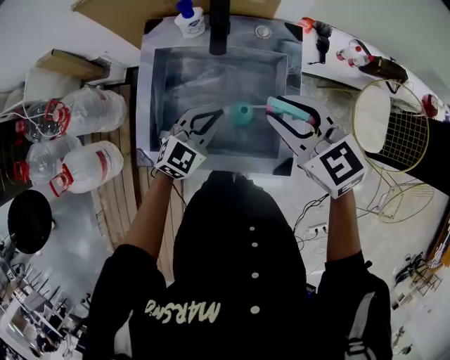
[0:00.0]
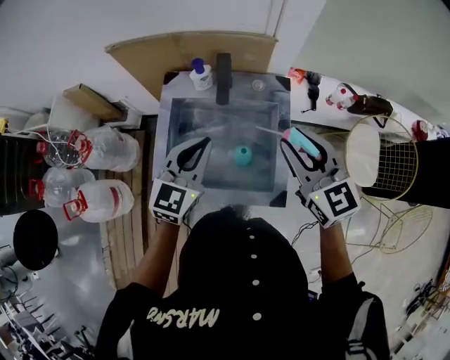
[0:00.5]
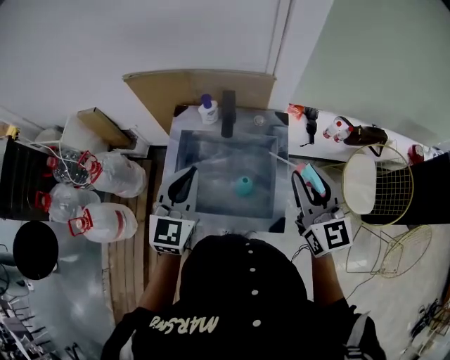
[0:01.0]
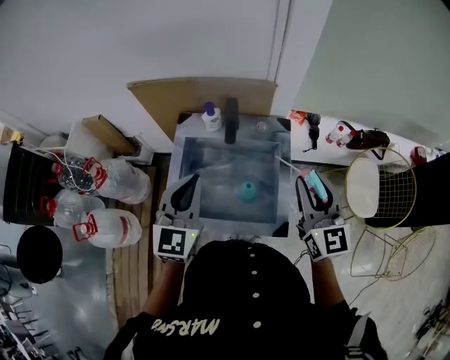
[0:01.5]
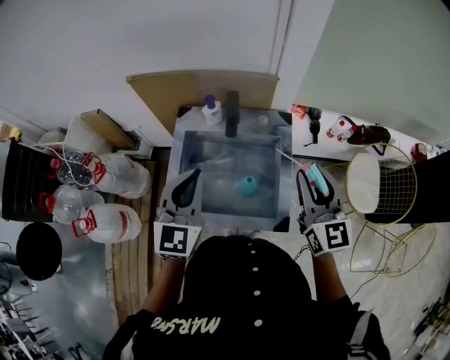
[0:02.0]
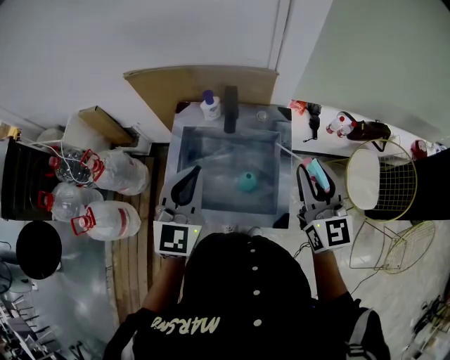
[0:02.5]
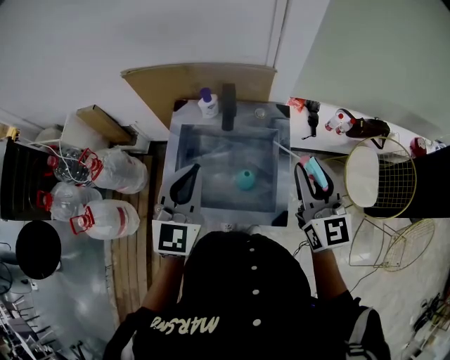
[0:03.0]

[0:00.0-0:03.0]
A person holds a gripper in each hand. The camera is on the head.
0:00.0 to 0:01.5: The left gripper goes roughly 25 cm upward, and swivels about 30 degrees. Meanwhile the right gripper moves upward, to the right and backward, approximately 15 cm, and rotates some 40 degrees.
0:01.5 to 0:03.0: The grippers move only a little.

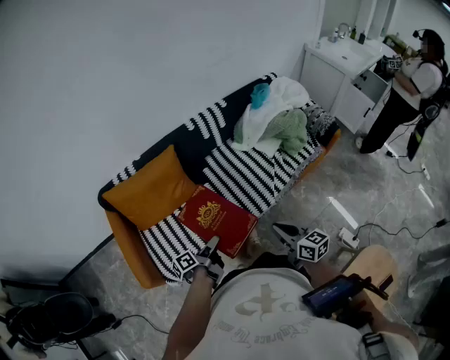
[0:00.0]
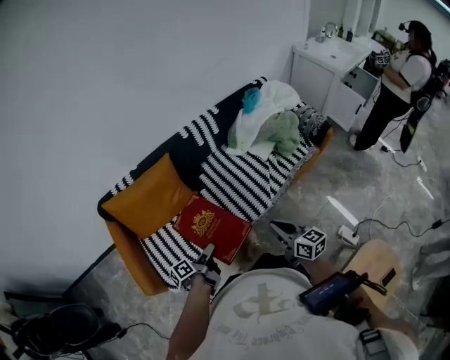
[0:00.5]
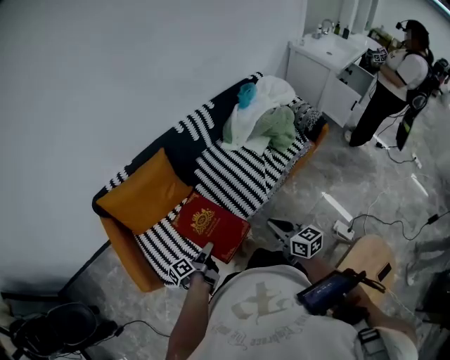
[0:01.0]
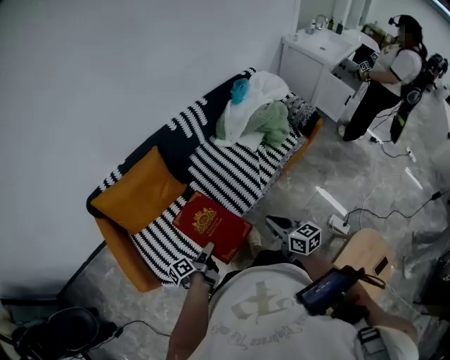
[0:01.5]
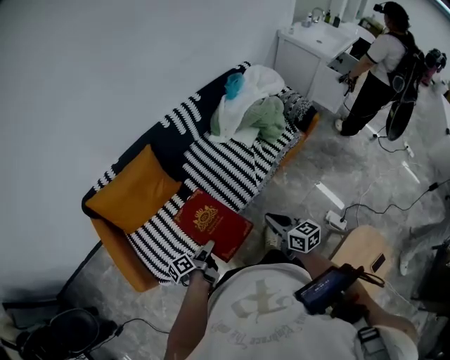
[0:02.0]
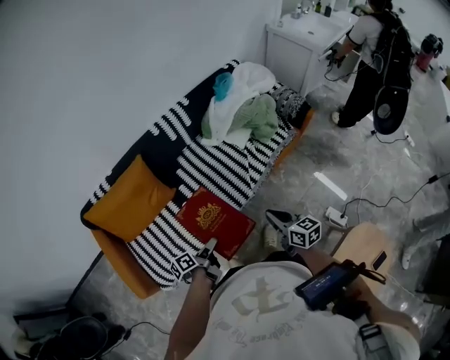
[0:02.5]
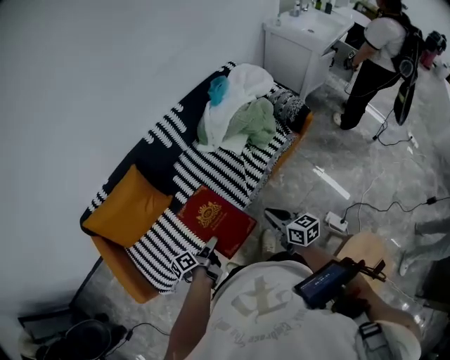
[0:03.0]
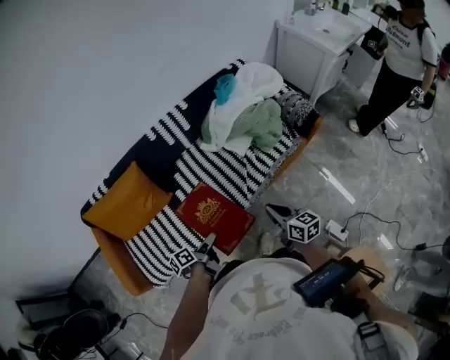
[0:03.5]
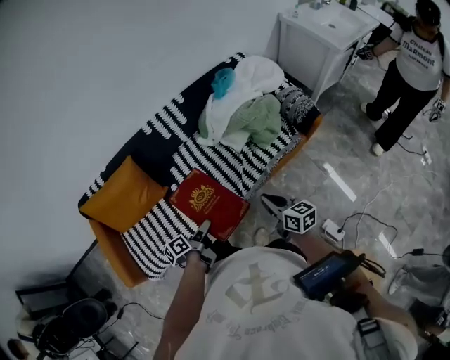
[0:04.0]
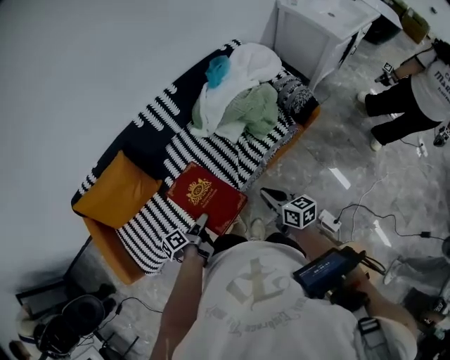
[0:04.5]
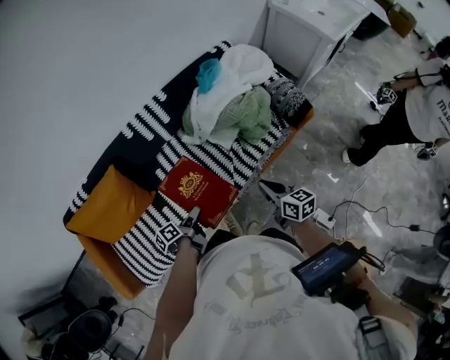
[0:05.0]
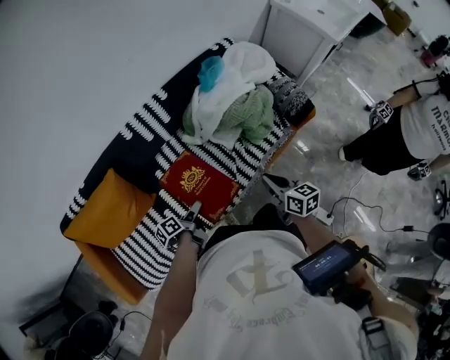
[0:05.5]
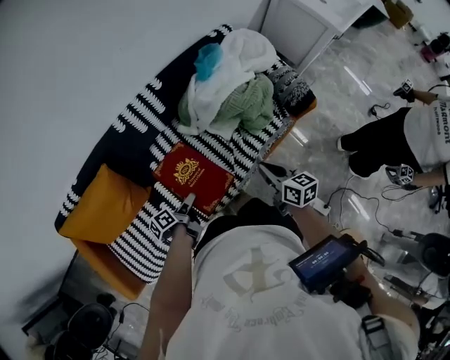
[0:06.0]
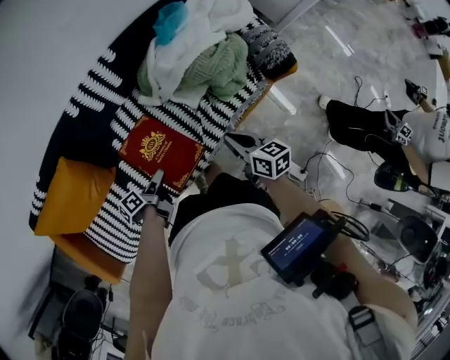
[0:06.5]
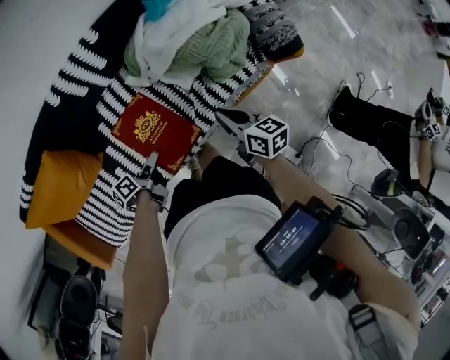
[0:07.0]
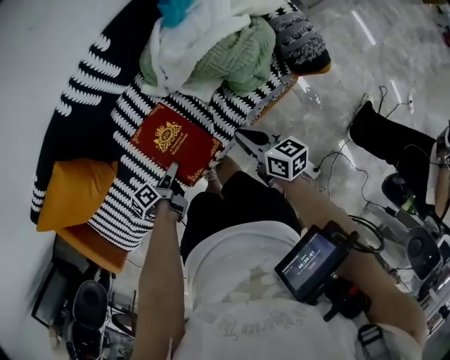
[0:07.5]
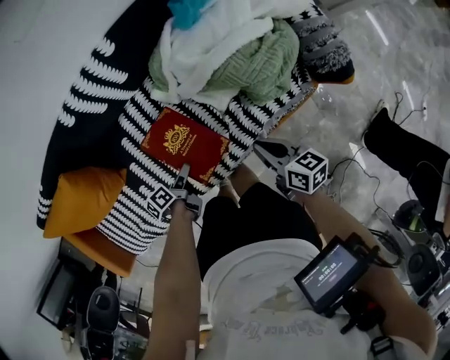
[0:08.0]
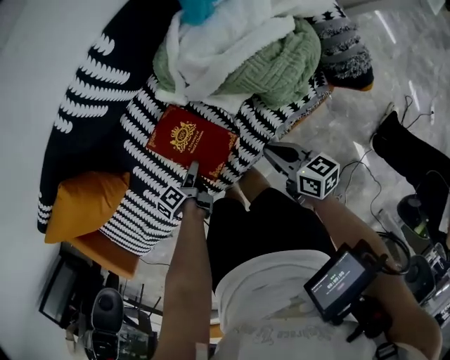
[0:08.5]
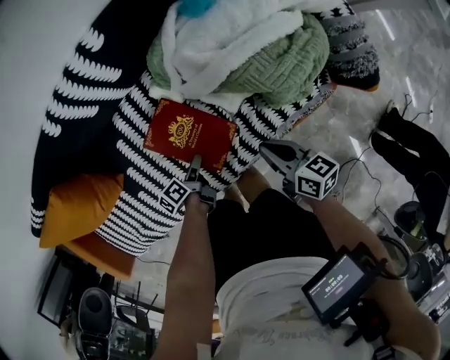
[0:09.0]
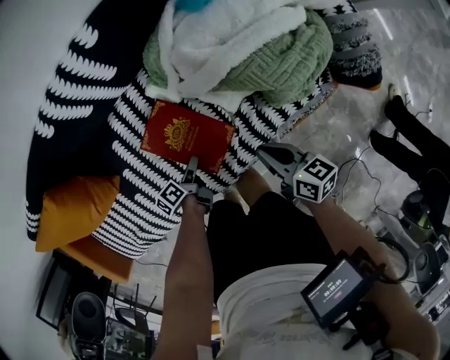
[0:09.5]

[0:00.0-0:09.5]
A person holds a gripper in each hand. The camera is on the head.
0:02.0 to 0:04.0: The right gripper shifts by roughly 25 cm.
0:04.0 to 0:05.5: The right gripper changes place by approximately 10 cm.
0:05.5 to 0:07.5: The right gripper heads downward, covering approximately 10 cm.
0:07.5 to 0:09.5: The right gripper heads downward, covering approximately 10 cm.

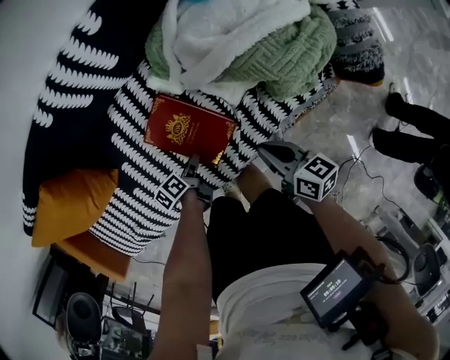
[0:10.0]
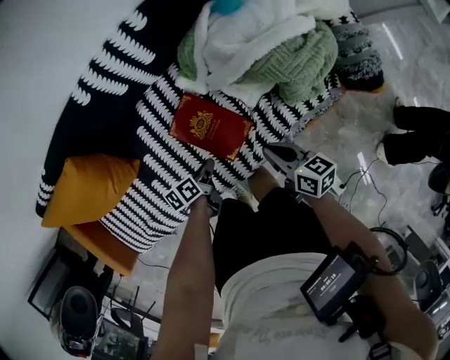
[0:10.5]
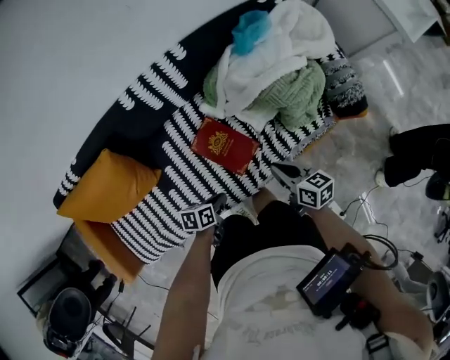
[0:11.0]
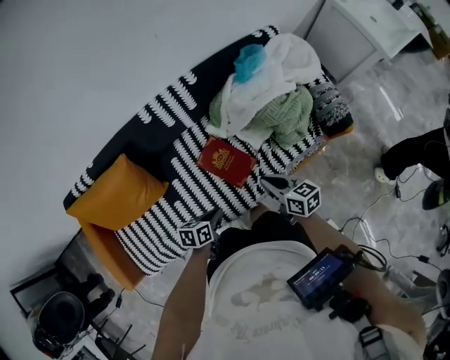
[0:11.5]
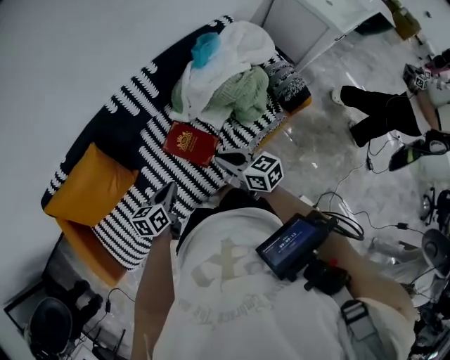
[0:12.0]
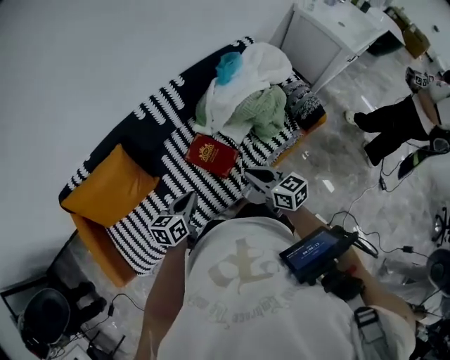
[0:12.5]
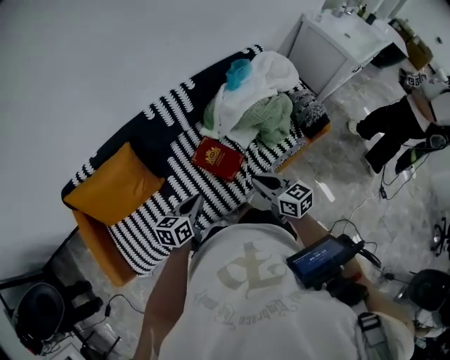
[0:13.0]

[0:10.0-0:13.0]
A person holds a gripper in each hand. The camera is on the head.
0:10.0 to 0:11.5: The right gripper heads upward, covering roughly 20 cm.
0:11.5 to 0:13.0: The right gripper travels upward by roughly 10 cm.

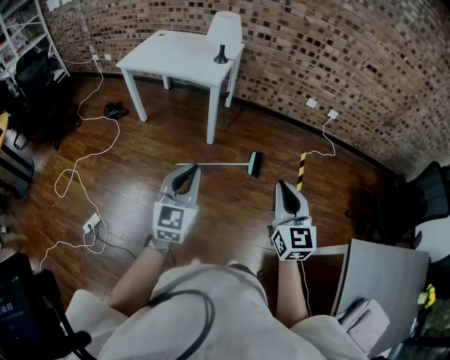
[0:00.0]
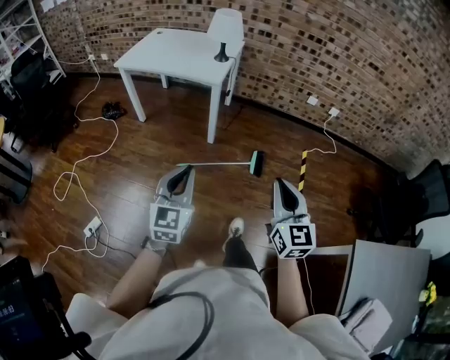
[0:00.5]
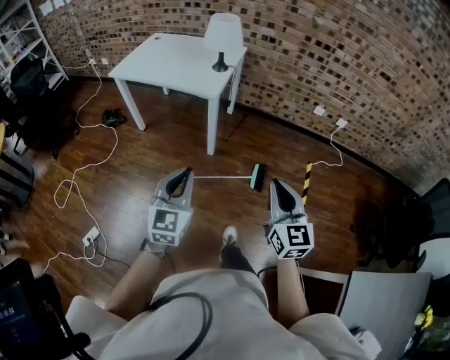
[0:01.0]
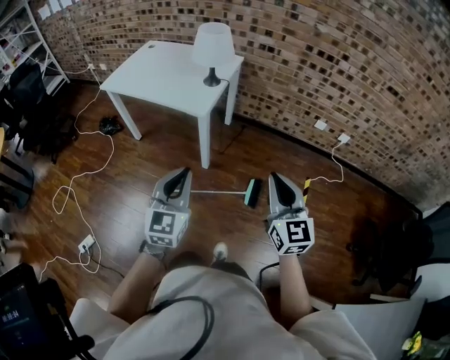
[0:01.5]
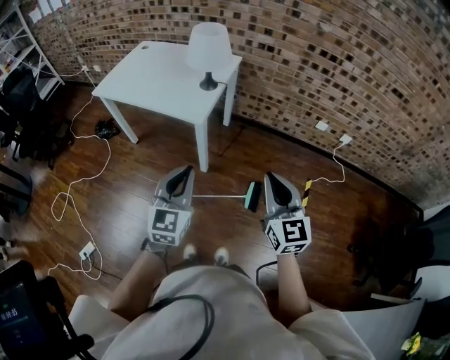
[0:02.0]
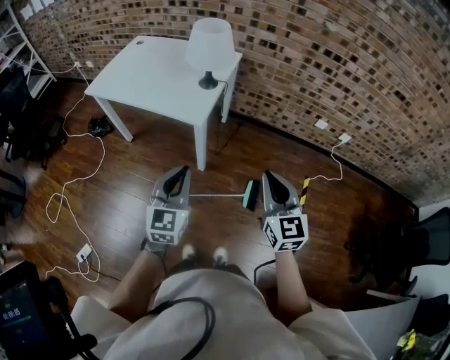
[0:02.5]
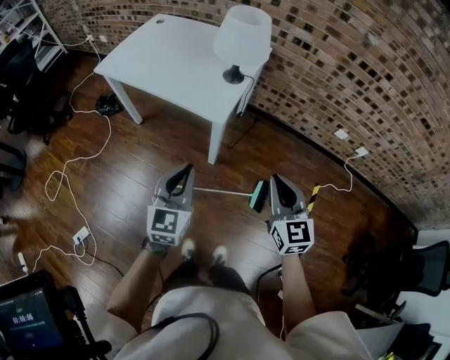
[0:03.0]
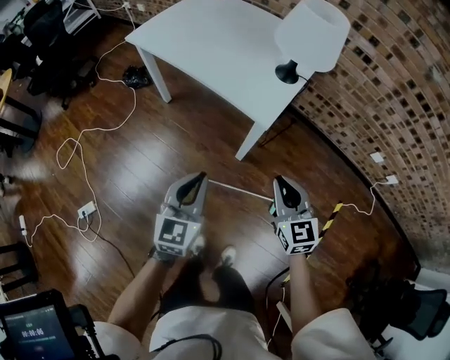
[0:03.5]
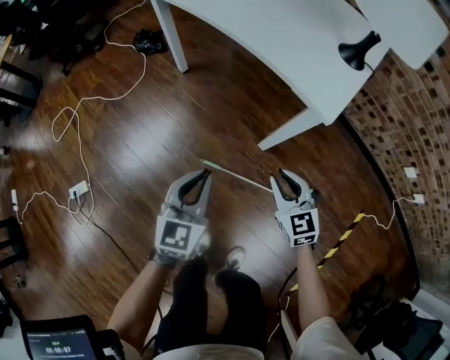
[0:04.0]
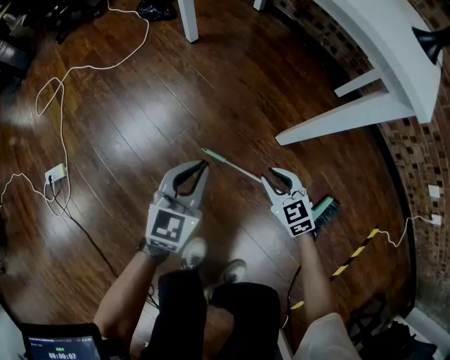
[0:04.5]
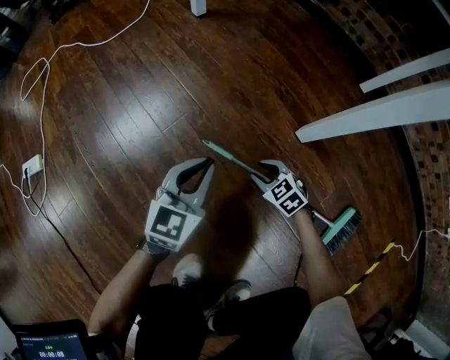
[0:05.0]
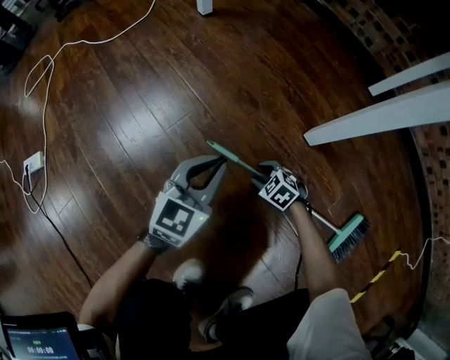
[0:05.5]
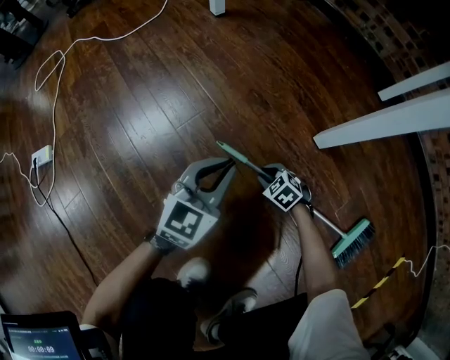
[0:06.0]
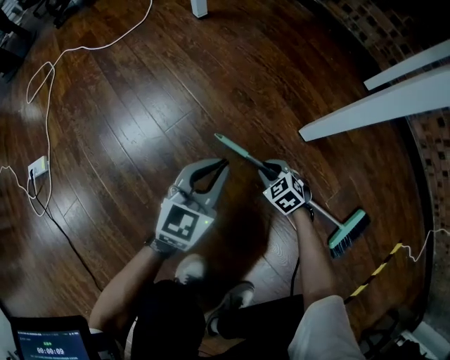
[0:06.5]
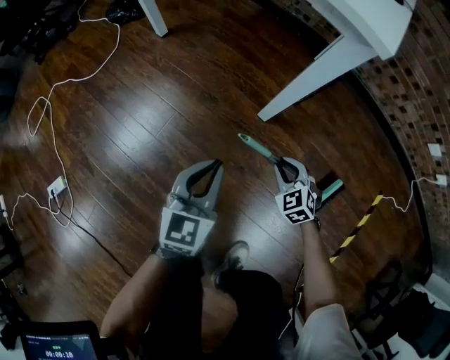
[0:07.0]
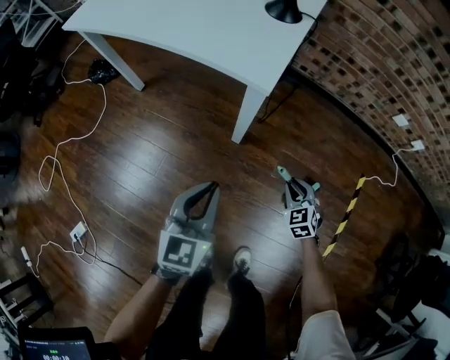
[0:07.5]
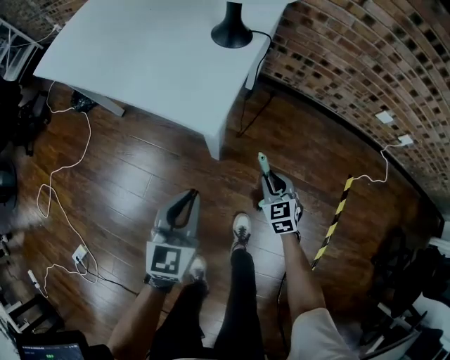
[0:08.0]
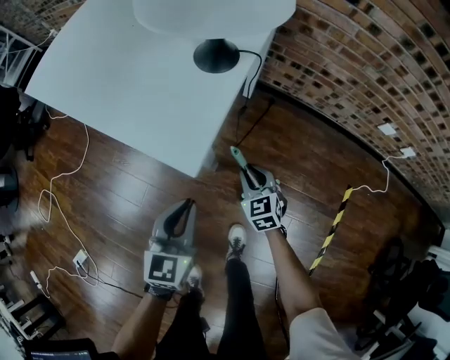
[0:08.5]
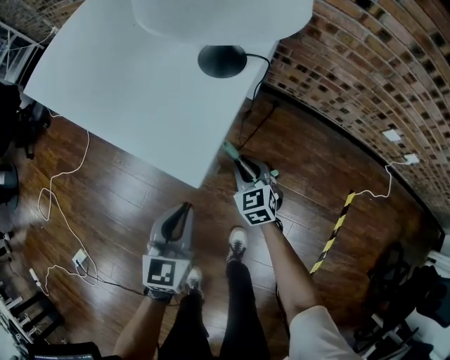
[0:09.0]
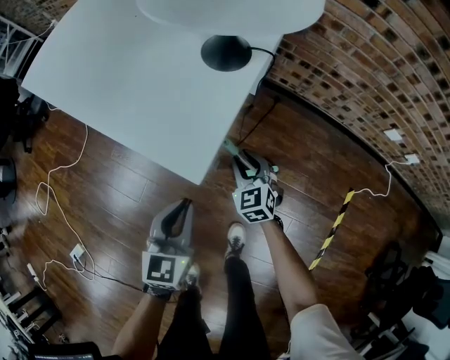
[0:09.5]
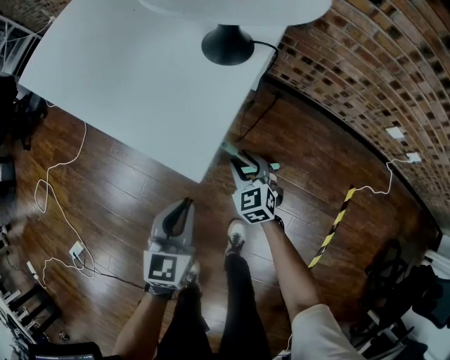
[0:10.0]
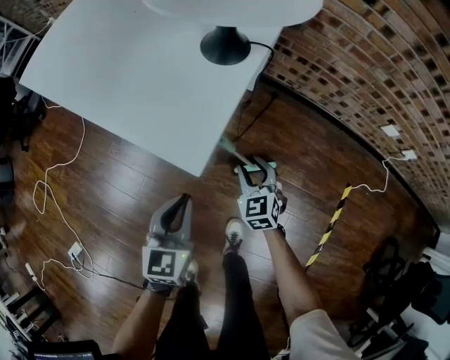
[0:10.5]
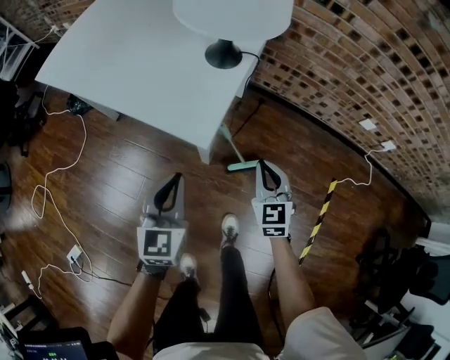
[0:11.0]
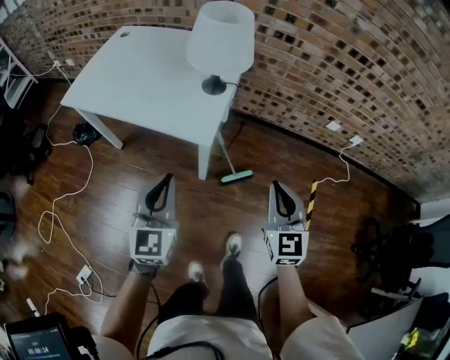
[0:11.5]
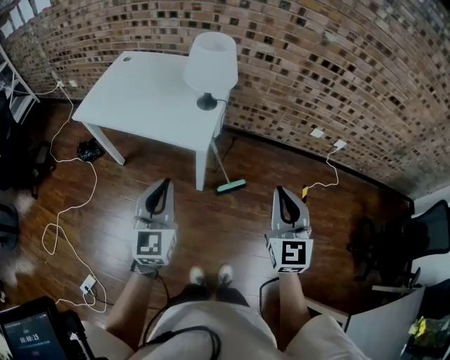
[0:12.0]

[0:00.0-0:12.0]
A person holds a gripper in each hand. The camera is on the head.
0:00.0 to 0:02.0: Both grippers move forward, roughly 35 cm.
0:02.0 to 0:04.0: The left gripper shifts about 40 cm downward, to the left and forward, and rotates roughly 20 degrees, while the right gripper shifts some 50 cm downward, forward and to the left, and turns by about 40 degrees.
0:04.0 to 0:06.0: Both grippers move downward, about 50 cm. The right gripper tips its fingers downward by some 40 degrees.
0:06.0 to 0:08.0: Both grippers move upward, roughly 50 cm. The right gripper rotates about 60 degrees.
0:08.0 to 0:10.0: The left gripper heads forward, covering about 5 cm; the right gripper moves forward and to the left, some 15 cm.
0:10.0 to 0:12.0: The left gripper is displaced upward and backward by roughly 40 cm, and swivels about 30 degrees. The right gripper goes some 60 cm upward and backward, points its fingers some 30 degrees further upward, and closes its fingers.
